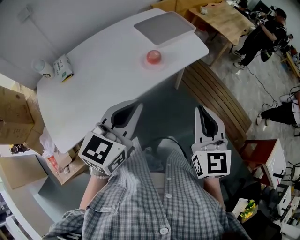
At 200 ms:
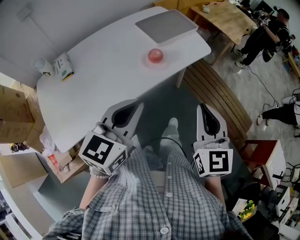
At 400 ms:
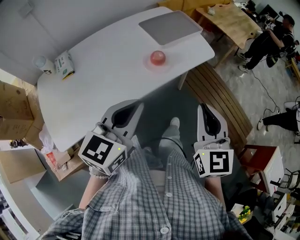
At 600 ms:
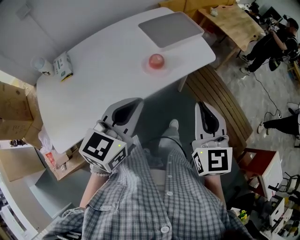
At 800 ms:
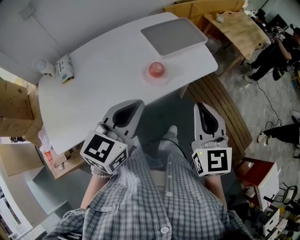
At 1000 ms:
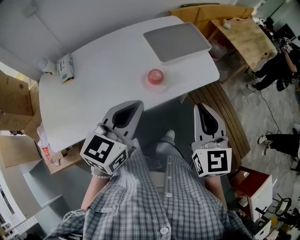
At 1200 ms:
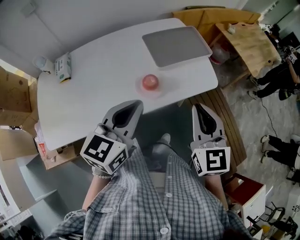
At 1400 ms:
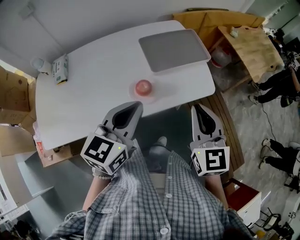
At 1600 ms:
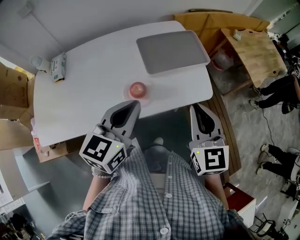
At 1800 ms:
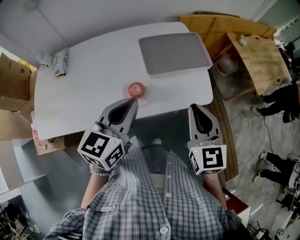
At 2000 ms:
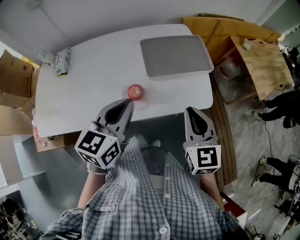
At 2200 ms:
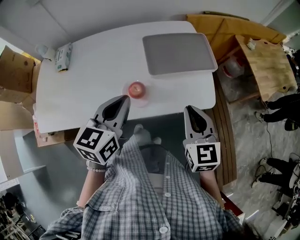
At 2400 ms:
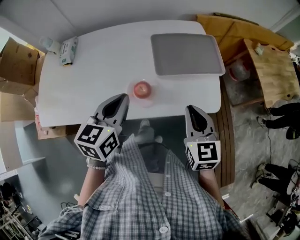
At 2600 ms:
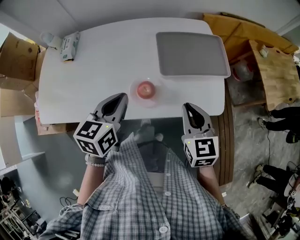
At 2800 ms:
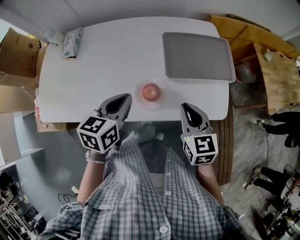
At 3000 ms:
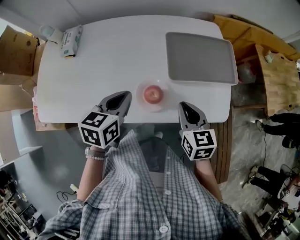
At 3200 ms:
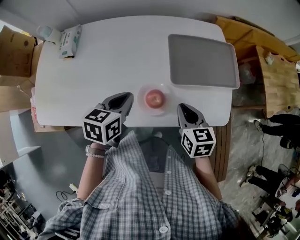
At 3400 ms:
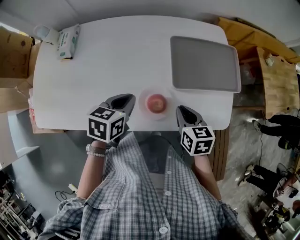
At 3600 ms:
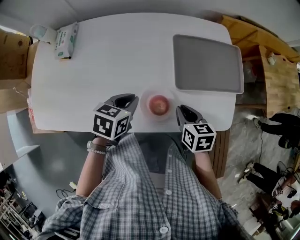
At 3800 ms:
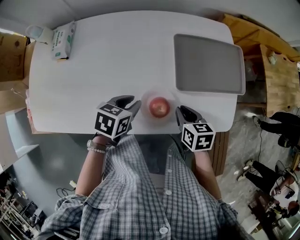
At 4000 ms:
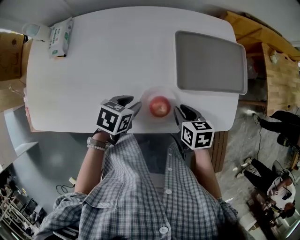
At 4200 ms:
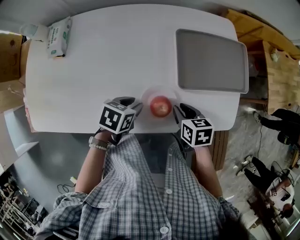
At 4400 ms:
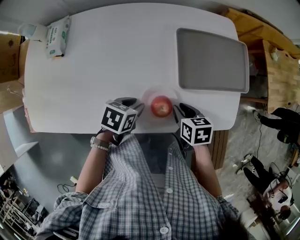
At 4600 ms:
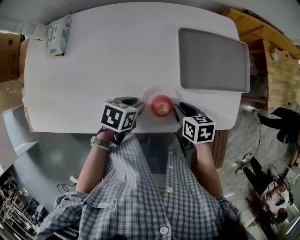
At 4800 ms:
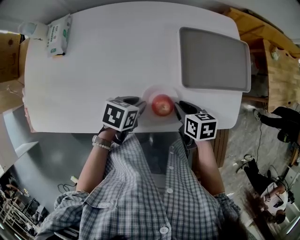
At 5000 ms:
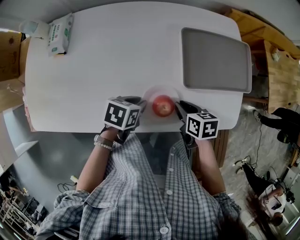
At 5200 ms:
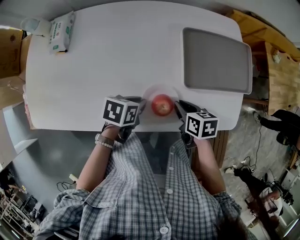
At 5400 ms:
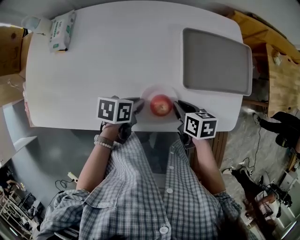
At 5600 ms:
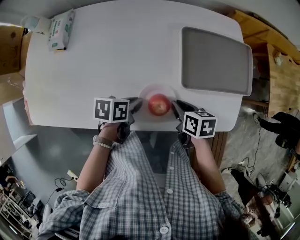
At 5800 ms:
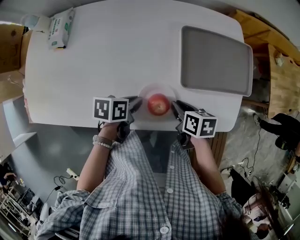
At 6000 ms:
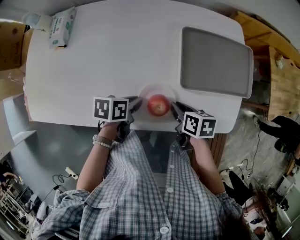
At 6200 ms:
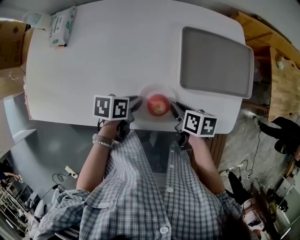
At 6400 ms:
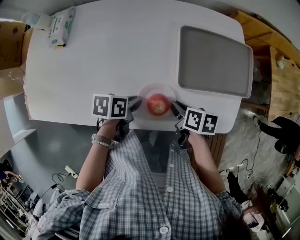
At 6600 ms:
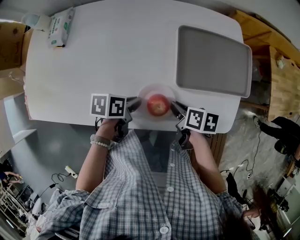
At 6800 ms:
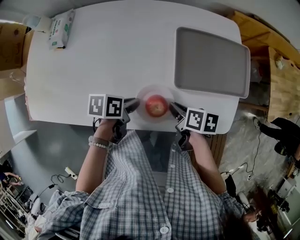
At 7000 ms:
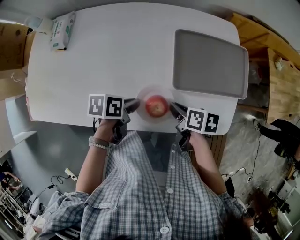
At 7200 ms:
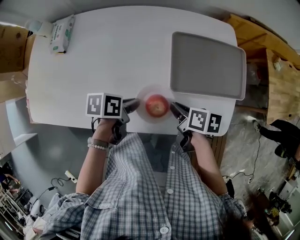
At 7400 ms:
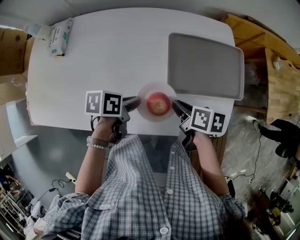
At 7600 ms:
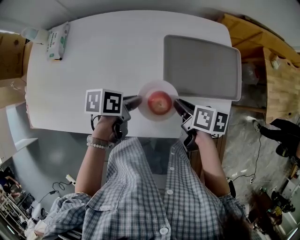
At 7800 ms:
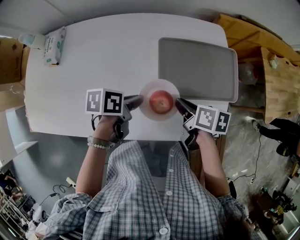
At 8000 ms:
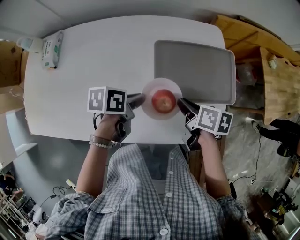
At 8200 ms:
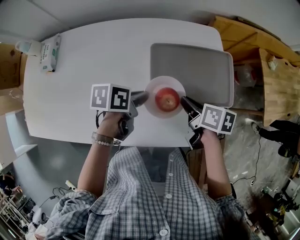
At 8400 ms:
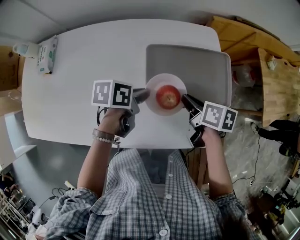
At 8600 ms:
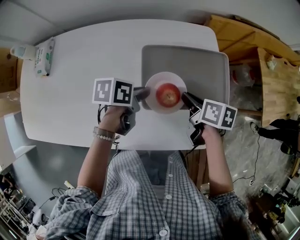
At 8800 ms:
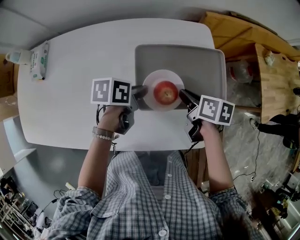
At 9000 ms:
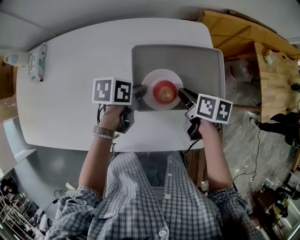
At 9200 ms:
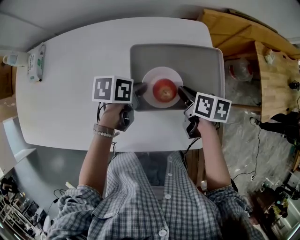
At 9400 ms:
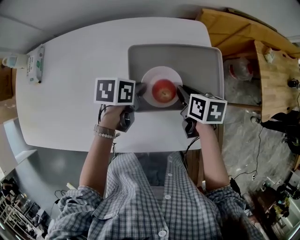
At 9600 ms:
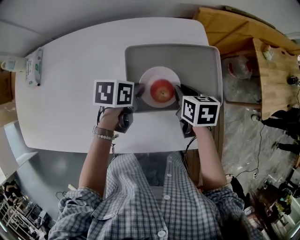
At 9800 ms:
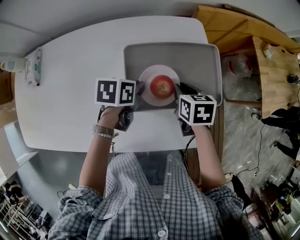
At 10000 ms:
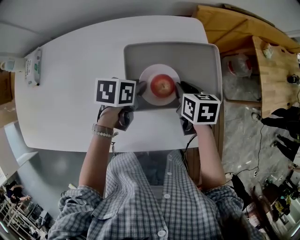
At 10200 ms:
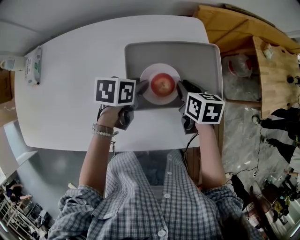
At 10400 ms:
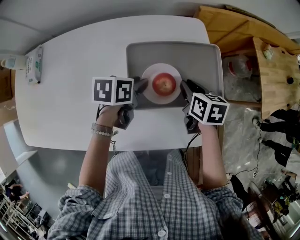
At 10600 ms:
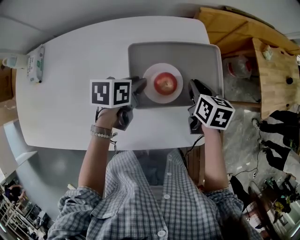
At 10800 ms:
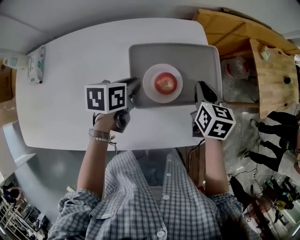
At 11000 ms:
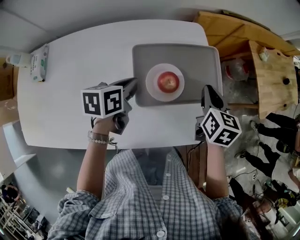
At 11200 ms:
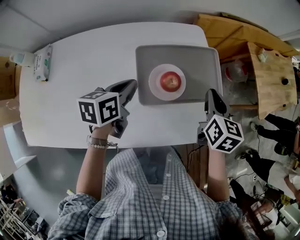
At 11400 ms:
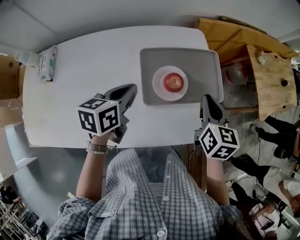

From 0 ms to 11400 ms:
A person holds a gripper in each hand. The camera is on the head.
From 0 ms to 1400 ms: Both grippers travel together forward, some 25 cm. The right gripper rotates approximately 20 degrees, while the left gripper turns by roughly 20 degrees.
From 1400 ms to 2800 ms: The right gripper is displaced downward and forward by some 15 cm, and turns by some 30 degrees. Meanwhile the left gripper is displaced downward, forward and to the left by roughly 15 cm, and swivels about 30 degrees.
From 2800 ms to 4200 ms: The grippers both shift downward by some 15 cm. The right gripper turns by about 40 degrees, while the left gripper turns by roughly 40 degrees, and opens up.
From 4200 ms to 5600 ms: The left gripper swivels approximately 30 degrees.
From 5600 ms to 7200 ms: The grippers move only a little.
From 7200 ms to 8600 ms: Both grippers move forward and to the right, about 15 cm.
From 8600 ms to 10000 ms: The right gripper rotates some 20 degrees.
From 10000 ms to 11400 ms: The right gripper shifts roughly 15 cm upward, and swivels about 30 degrees. Meanwhile the left gripper shifts approximately 15 cm upward, backward and to the left, and changes its angle by approximately 20 degrees.

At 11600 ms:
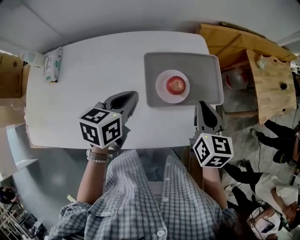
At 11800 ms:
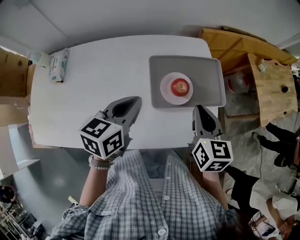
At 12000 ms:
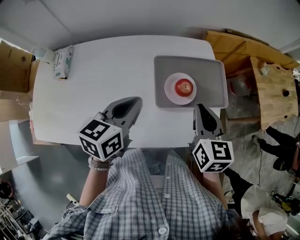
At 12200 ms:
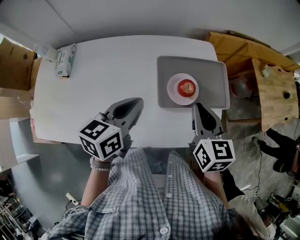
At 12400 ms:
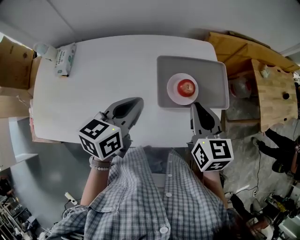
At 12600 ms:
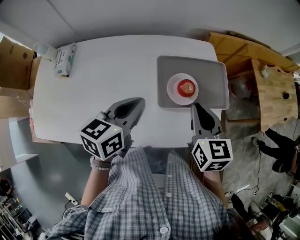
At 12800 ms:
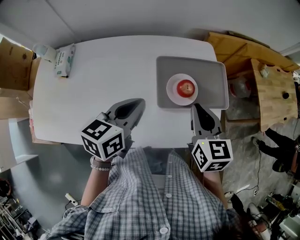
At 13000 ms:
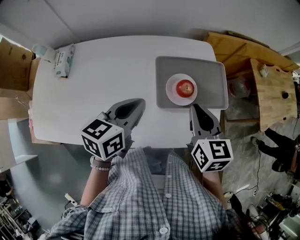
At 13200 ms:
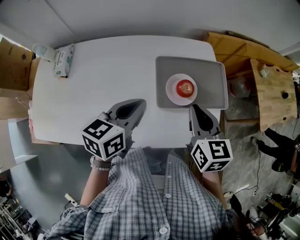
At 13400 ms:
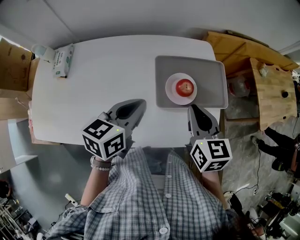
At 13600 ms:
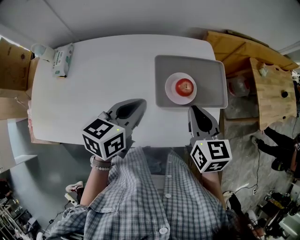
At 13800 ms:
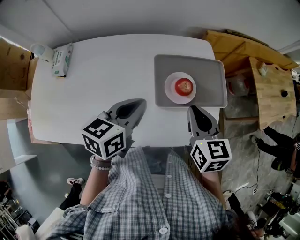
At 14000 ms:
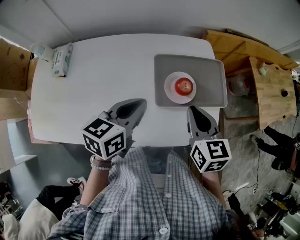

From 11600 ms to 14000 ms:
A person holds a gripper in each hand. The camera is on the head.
From 11600 ms to 12800 ms: The left gripper moves about 5 cm. Meanwhile the right gripper goes about 5 cm to the left.
From 12800 ms to 14000 ms: The grippers move only a little.

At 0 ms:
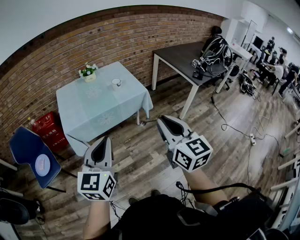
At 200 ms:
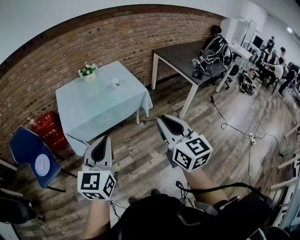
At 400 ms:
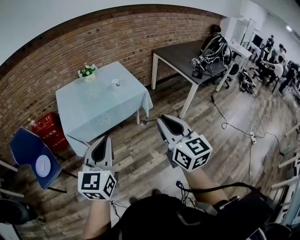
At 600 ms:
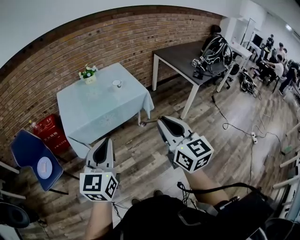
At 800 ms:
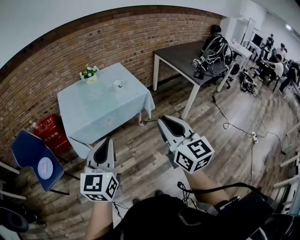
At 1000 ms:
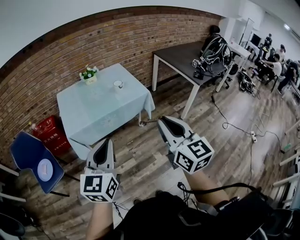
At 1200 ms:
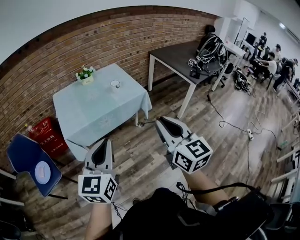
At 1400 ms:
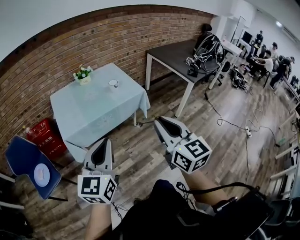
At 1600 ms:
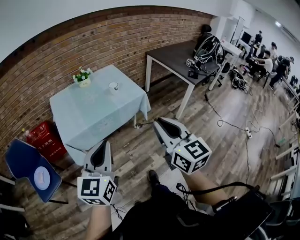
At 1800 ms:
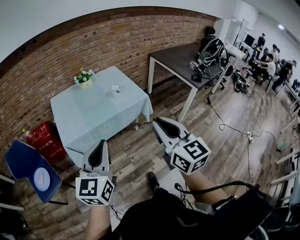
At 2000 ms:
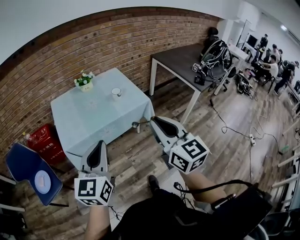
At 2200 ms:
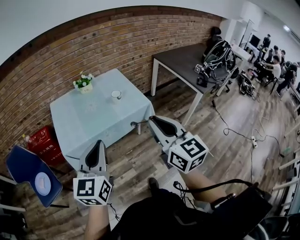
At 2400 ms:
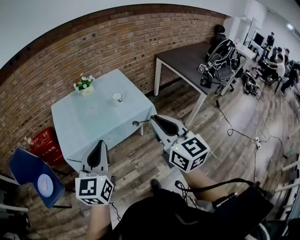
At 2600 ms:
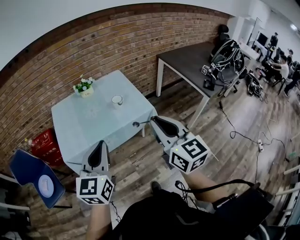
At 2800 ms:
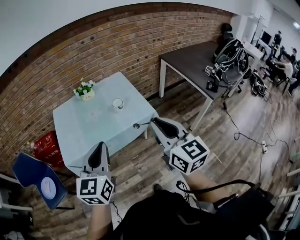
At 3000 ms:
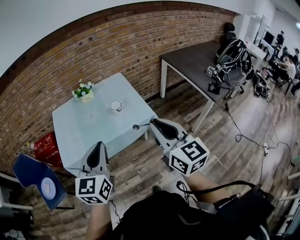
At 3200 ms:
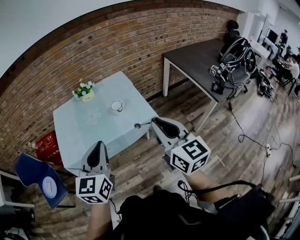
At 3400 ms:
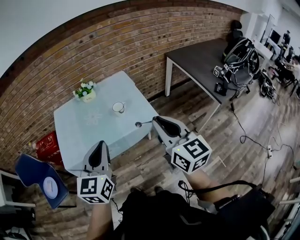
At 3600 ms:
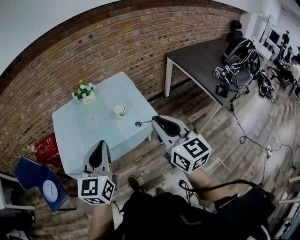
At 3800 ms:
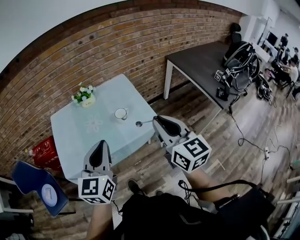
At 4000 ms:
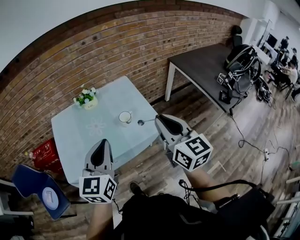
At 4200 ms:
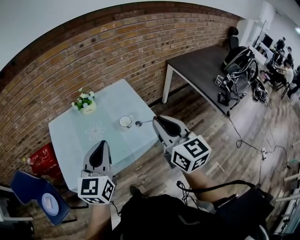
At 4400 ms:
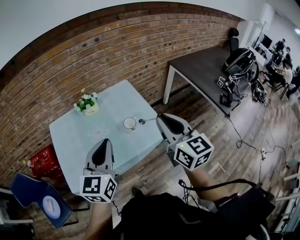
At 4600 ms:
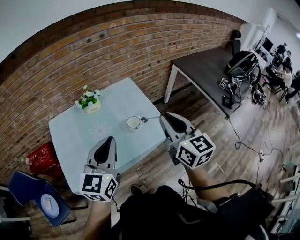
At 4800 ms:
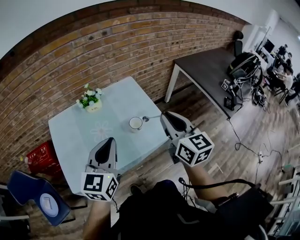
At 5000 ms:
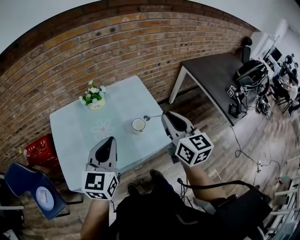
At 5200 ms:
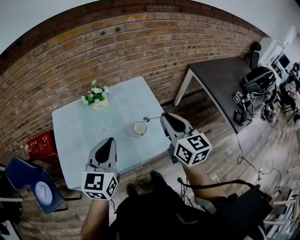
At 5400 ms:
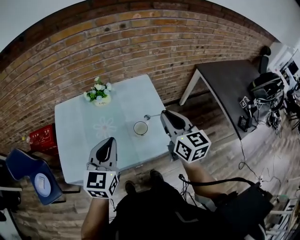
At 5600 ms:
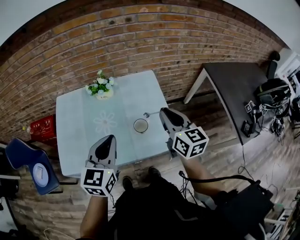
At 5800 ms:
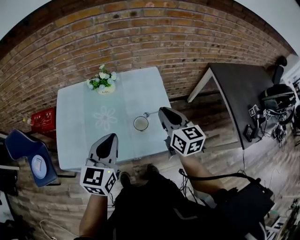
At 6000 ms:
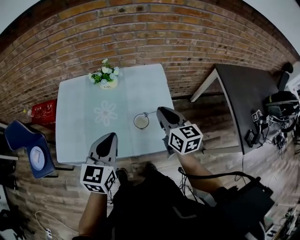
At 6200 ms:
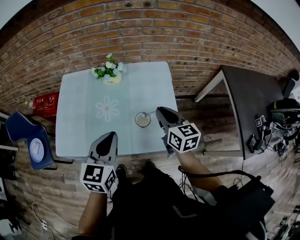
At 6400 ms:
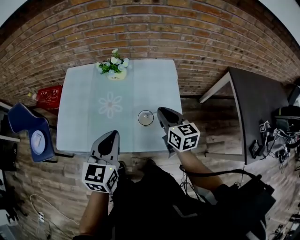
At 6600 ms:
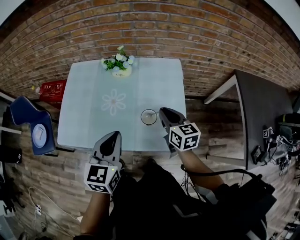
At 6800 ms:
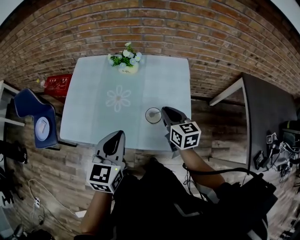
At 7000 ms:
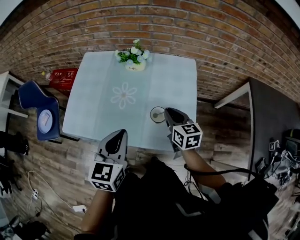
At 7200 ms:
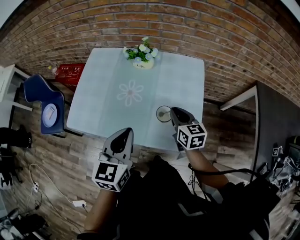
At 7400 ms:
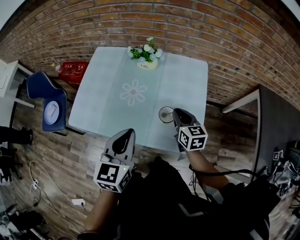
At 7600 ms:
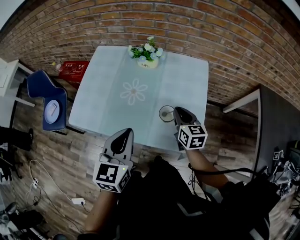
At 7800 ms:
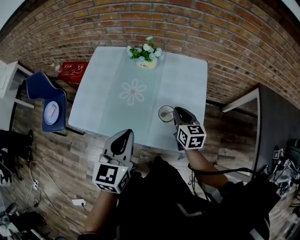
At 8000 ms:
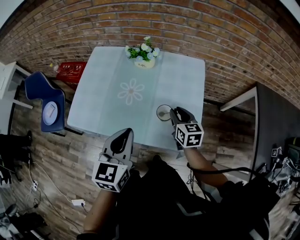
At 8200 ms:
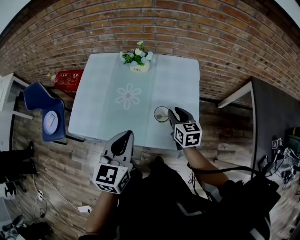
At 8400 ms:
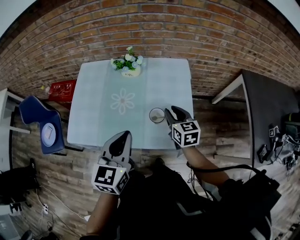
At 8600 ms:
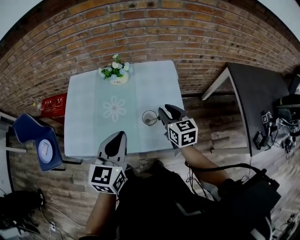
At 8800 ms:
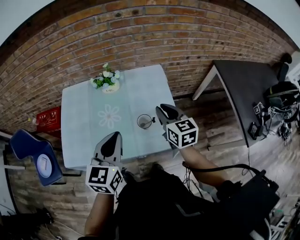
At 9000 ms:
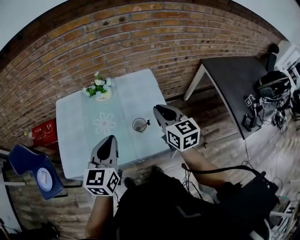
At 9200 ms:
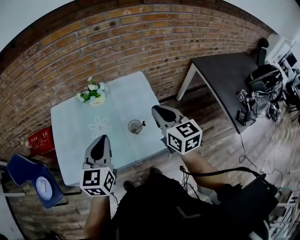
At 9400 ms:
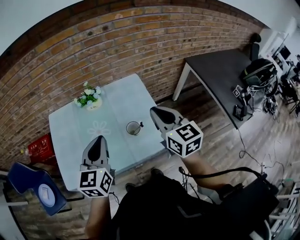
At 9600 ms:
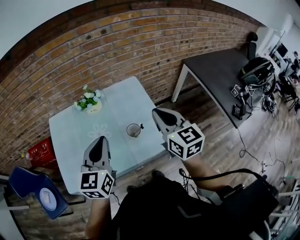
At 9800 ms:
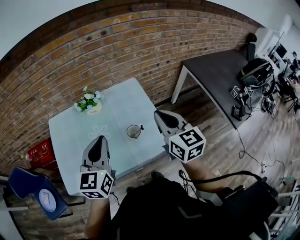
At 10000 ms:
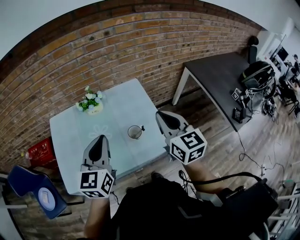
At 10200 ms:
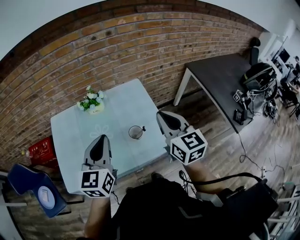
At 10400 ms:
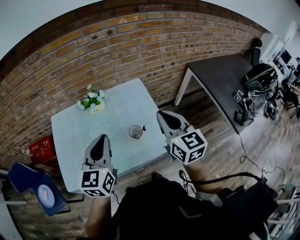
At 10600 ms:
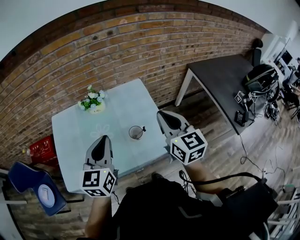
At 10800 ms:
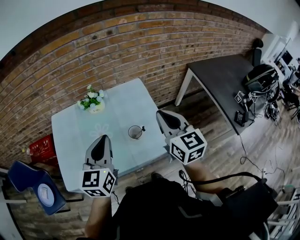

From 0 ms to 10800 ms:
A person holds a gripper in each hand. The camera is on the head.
From 0 ms to 1600 ms: The left gripper changes place by some 5 cm, while the right gripper is displaced to the left by some 5 cm.
From 1600 ms to 3000 ms: Both grippers travel together forward, roughly 25 cm.
From 3000 ms to 4600 ms: Both grippers move forward, approximately 20 cm.
From 4600 ms to 6200 ms: The left gripper is displaced downward by roughly 10 cm, and turns by about 30 degrees; the right gripper shifts roughly 15 cm downward, and turns by about 30 degrees.
From 6200 ms to 7800 ms: The right gripper goes some 10 cm downward.
From 7800 ms to 9200 ms: The right gripper goes approximately 20 cm upward, and changes its angle by approximately 20 degrees, while the left gripper moves upward and forward, about 10 cm, and turns by approximately 20 degrees.
From 9200 ms to 10800 ms: The grippers stay close to where they were, moving slightly.
